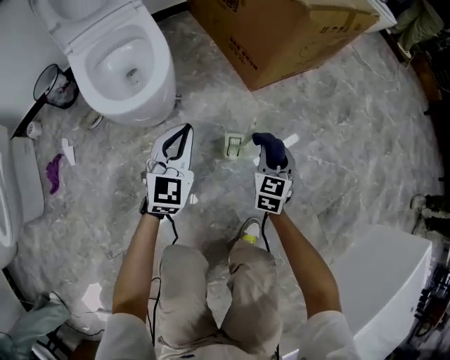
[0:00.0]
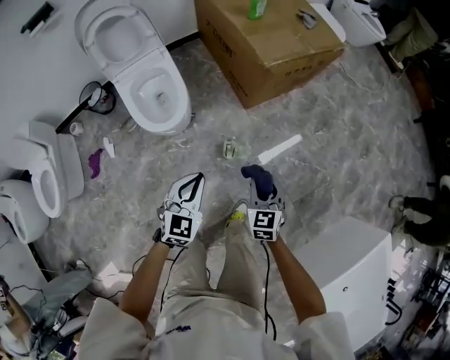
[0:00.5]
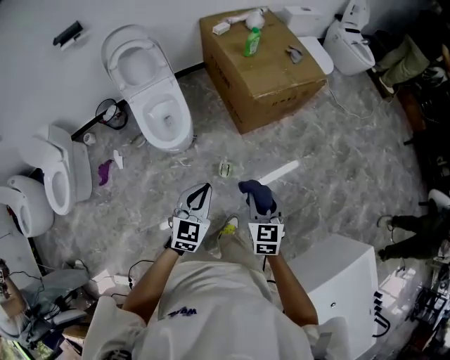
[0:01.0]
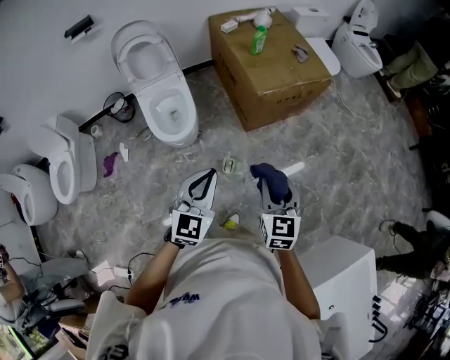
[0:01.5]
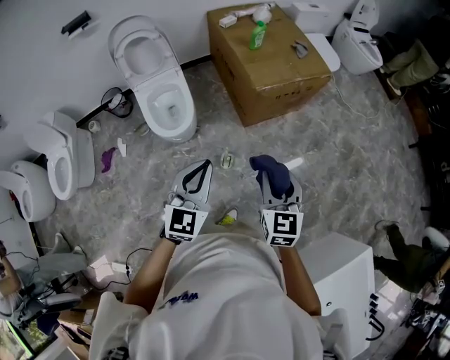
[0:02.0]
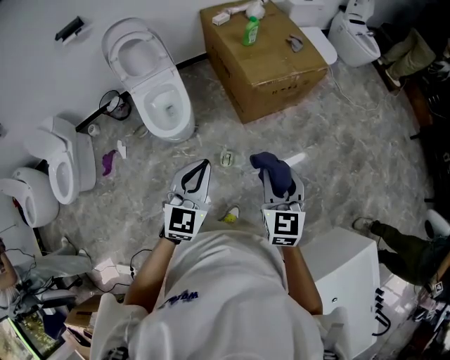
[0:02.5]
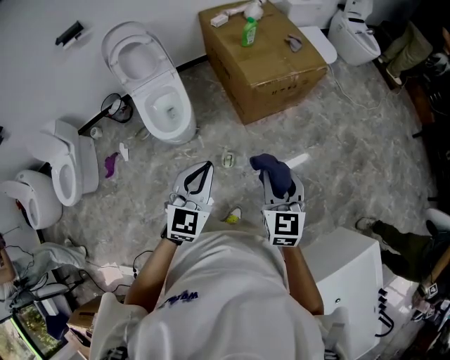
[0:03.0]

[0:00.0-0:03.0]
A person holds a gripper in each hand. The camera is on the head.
0:00.0 to 0:01.5: The two grippers go about 60 cm upward. The right gripper turns by approximately 20 degrees.
0:01.5 to 0:03.0: The grippers stay close to where they were, moving slightly.

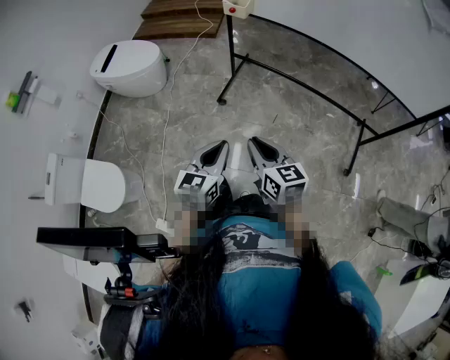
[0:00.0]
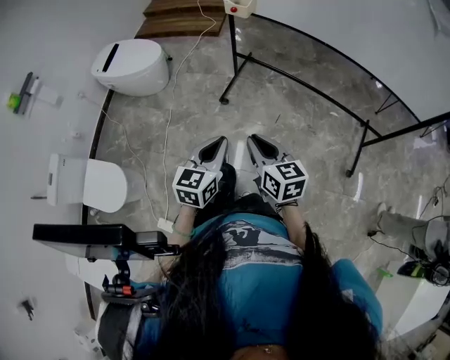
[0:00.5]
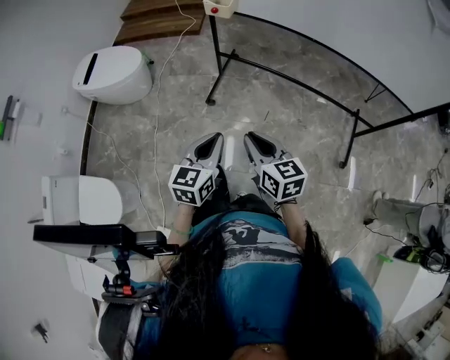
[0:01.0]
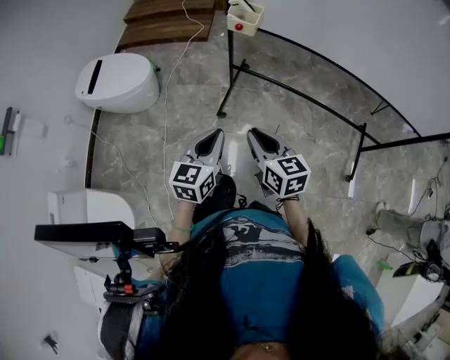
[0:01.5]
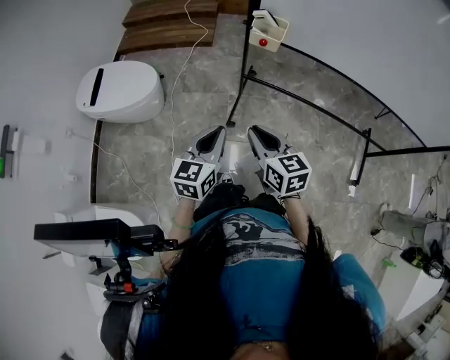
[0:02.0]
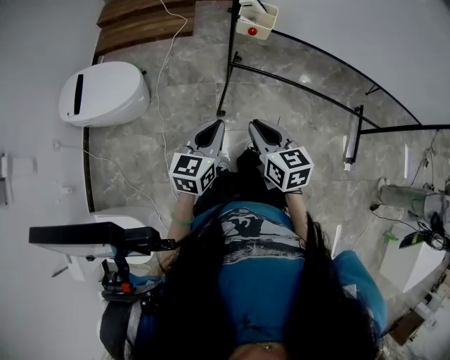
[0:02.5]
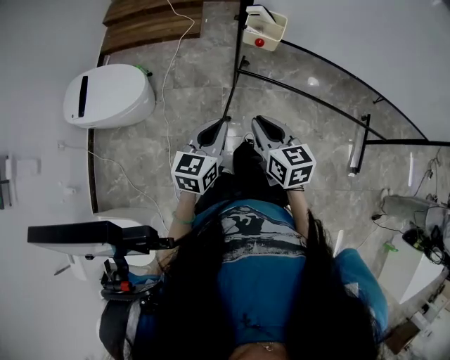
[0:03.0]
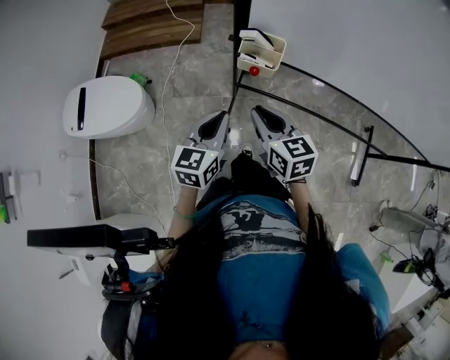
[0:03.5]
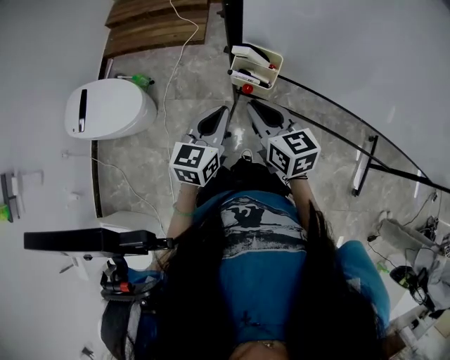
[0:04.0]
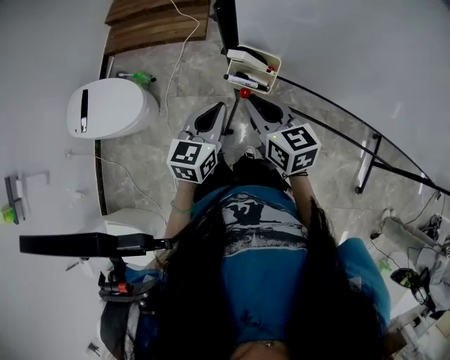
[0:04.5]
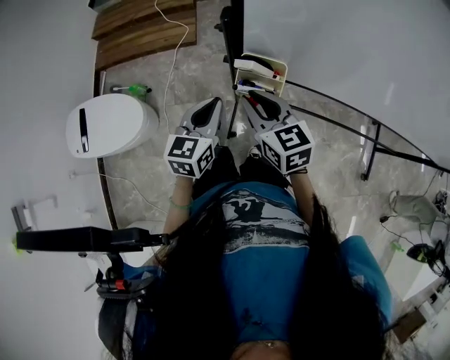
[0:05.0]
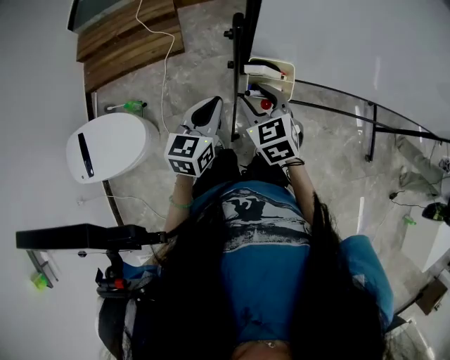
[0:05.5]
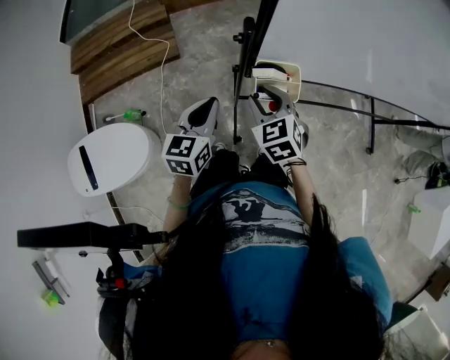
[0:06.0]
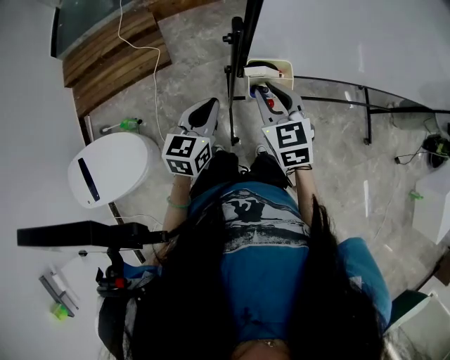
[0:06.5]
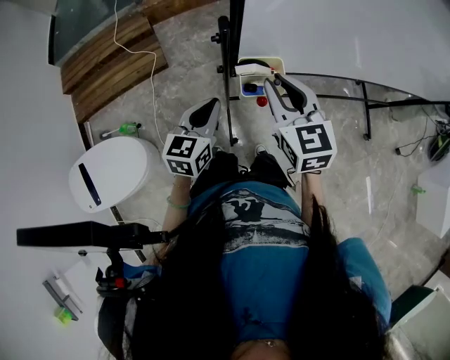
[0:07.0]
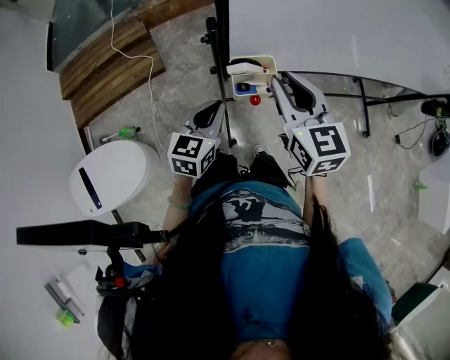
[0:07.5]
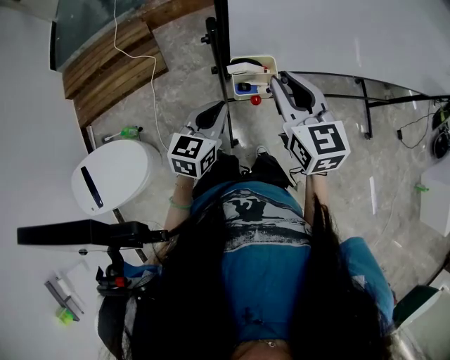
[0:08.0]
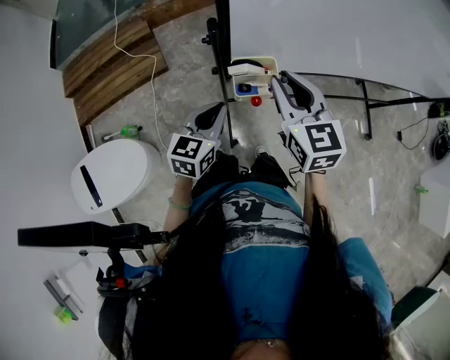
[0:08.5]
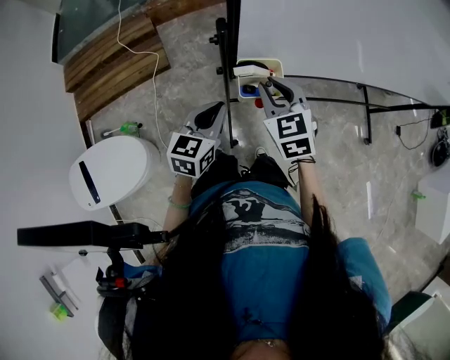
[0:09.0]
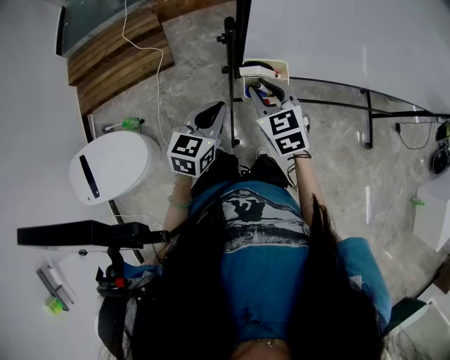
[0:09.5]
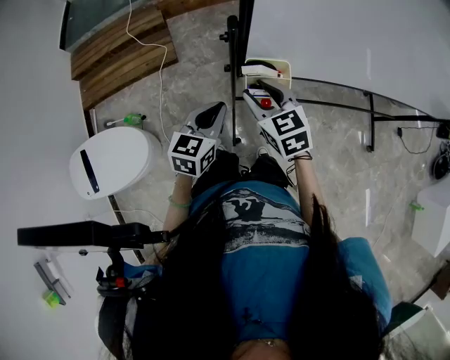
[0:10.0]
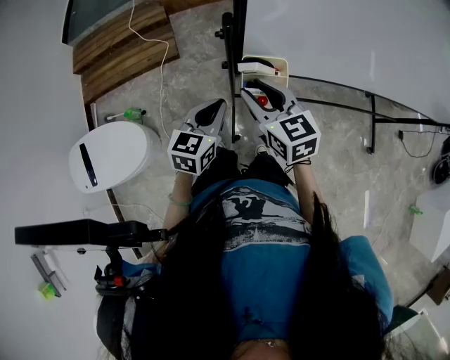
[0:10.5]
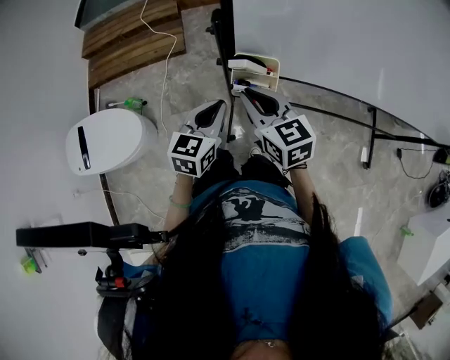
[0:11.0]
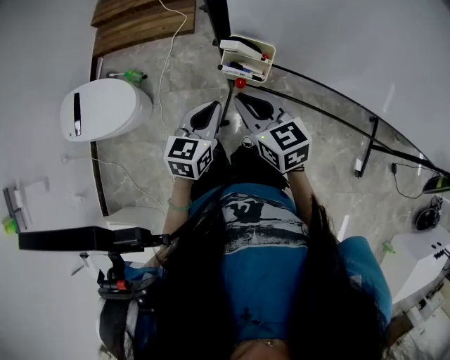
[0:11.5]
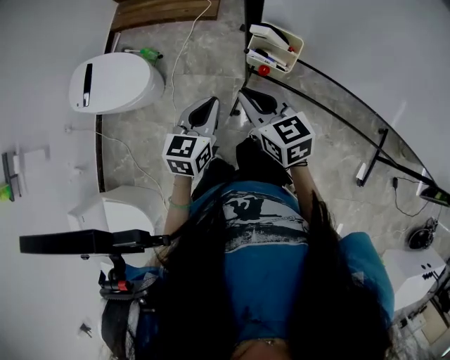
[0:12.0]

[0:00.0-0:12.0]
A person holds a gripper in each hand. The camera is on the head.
0:00.0 to 0:02.0: Both grippers move forward and to the left, about 40 cm.
0:02.0 to 0:04.0: The two grippers go approximately 30 cm forward.
0:04.0 to 0:06.0: The left gripper moves about 15 cm; the right gripper ends up approximately 10 cm from where it was, swivels roughly 40 degrees, and opens.
0:06.0 to 0:08.0: The right gripper goes about 15 cm upward and to the right, and turns by approximately 30 degrees; the left gripper shifts roughly 5 cm to the right.
0:08.0 to 0:10.0: The right gripper shifts approximately 15 cm downward and to the left, and turns by roughly 20 degrees.
0:10.0 to 0:12.0: The left gripper moves roughly 15 cm, and changes its angle by some 30 degrees. Meanwhile the right gripper shifts by about 15 cm, swivels approximately 30 degrees, and closes up.

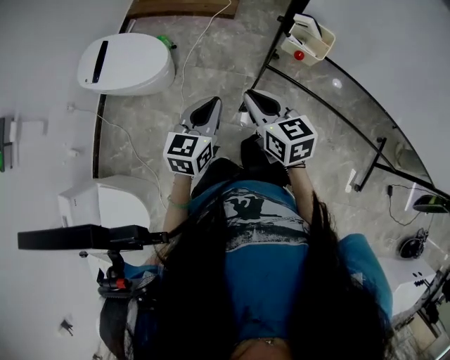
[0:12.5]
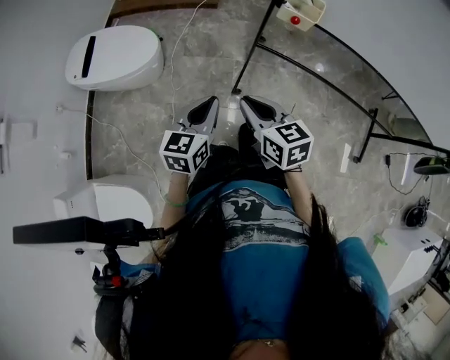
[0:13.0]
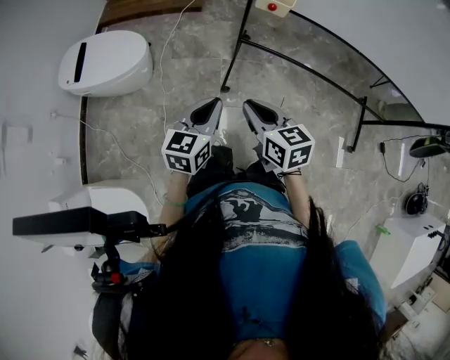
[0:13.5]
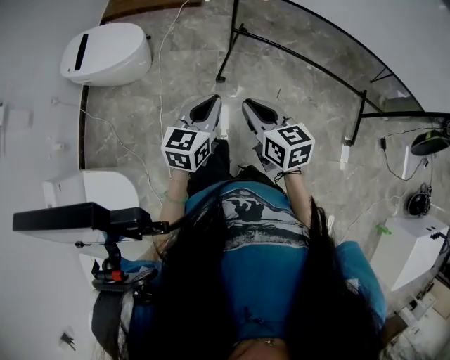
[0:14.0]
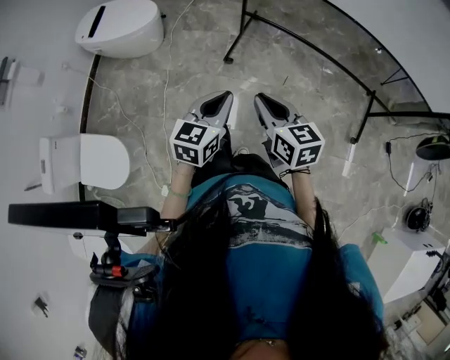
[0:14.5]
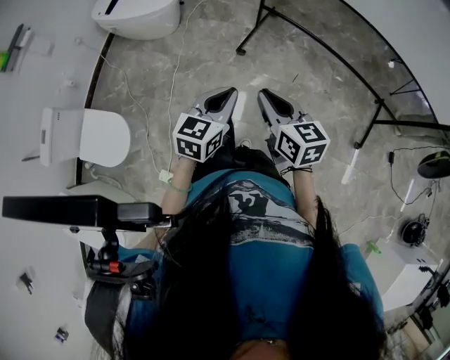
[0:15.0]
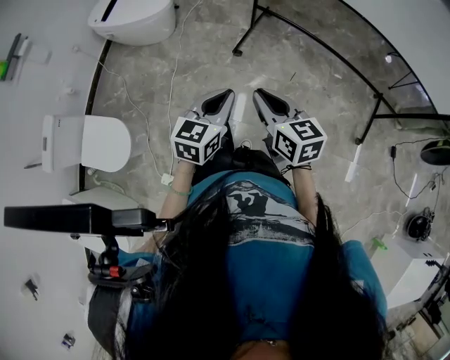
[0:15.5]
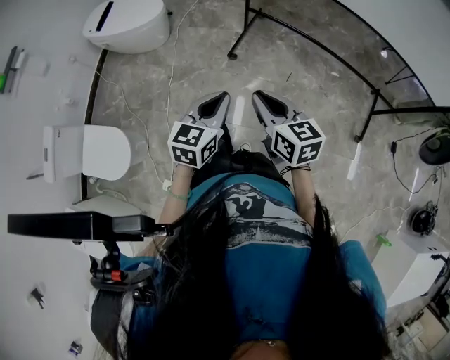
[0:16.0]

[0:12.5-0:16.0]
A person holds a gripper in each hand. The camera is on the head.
0:12.5 to 0:14.5: The pair of grippers is taken backward, some 40 cm.
0:14.5 to 0:16.0: The grippers both shift backward by about 5 cm.

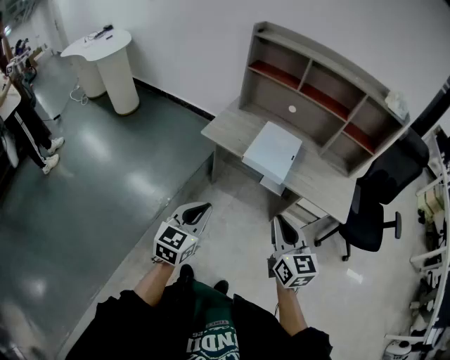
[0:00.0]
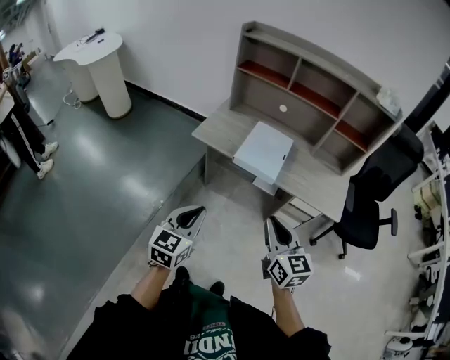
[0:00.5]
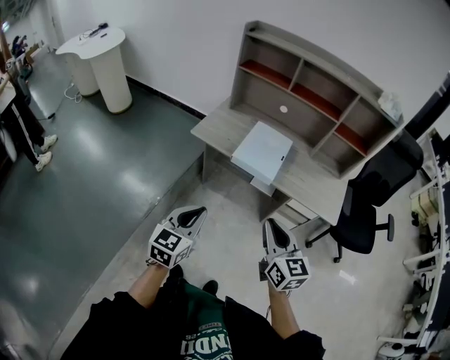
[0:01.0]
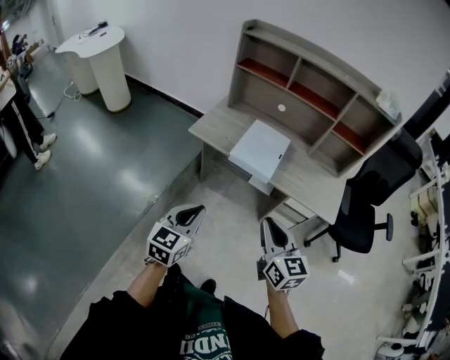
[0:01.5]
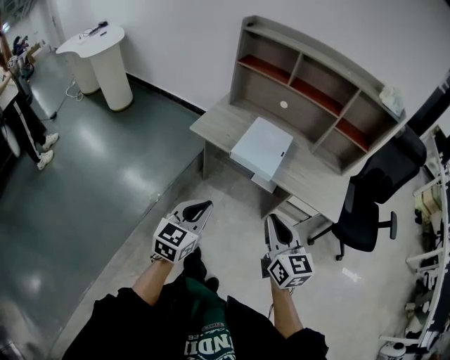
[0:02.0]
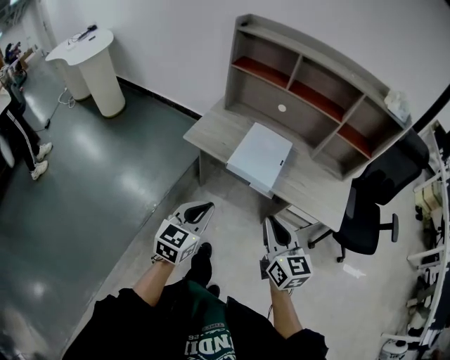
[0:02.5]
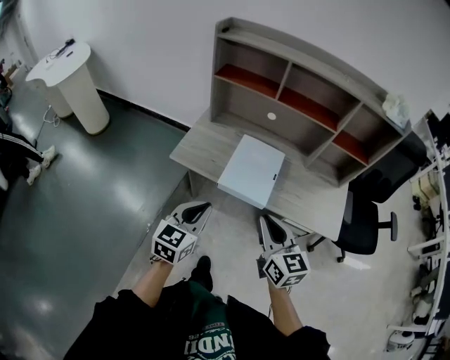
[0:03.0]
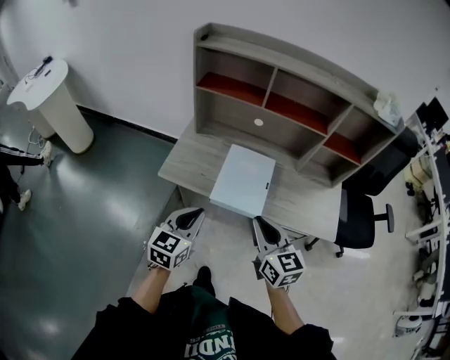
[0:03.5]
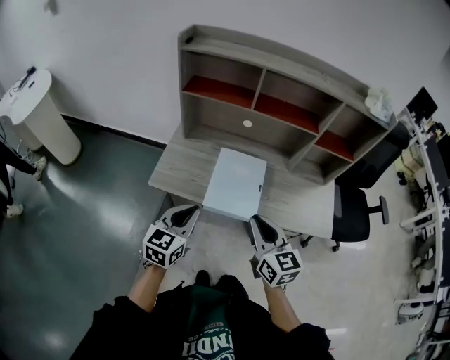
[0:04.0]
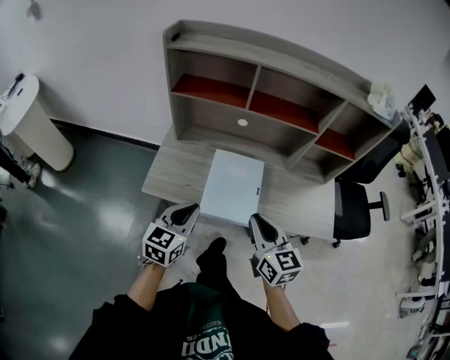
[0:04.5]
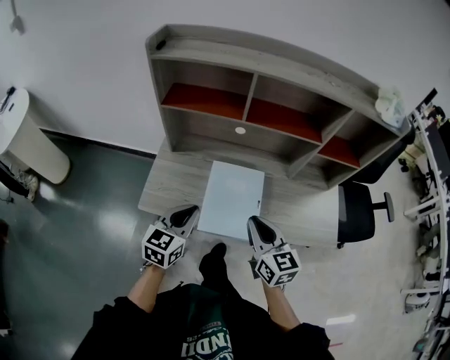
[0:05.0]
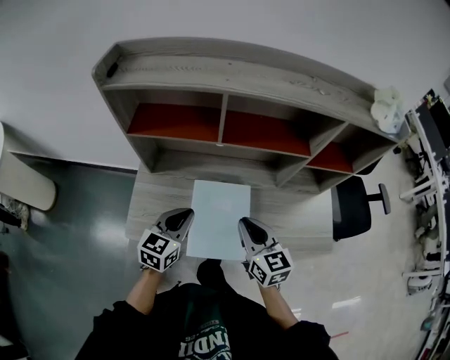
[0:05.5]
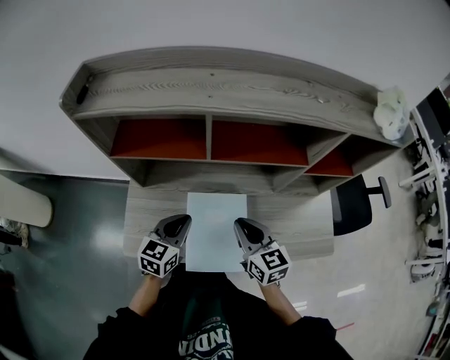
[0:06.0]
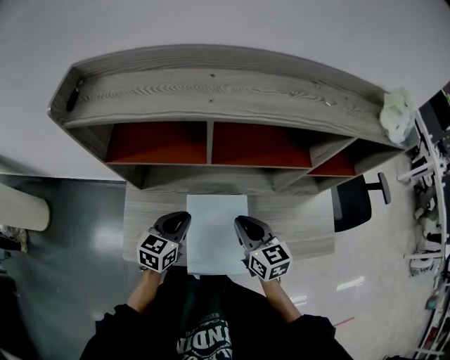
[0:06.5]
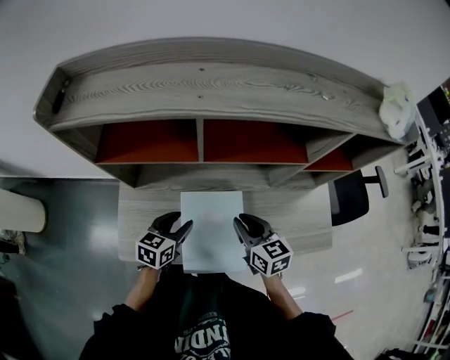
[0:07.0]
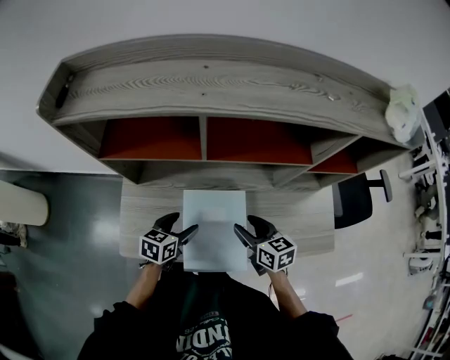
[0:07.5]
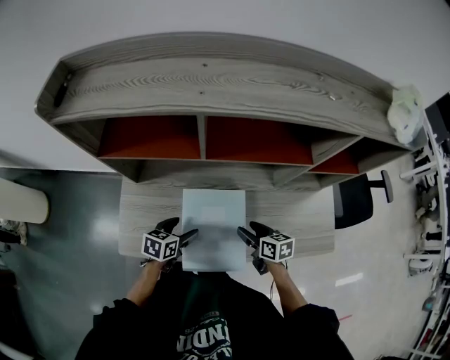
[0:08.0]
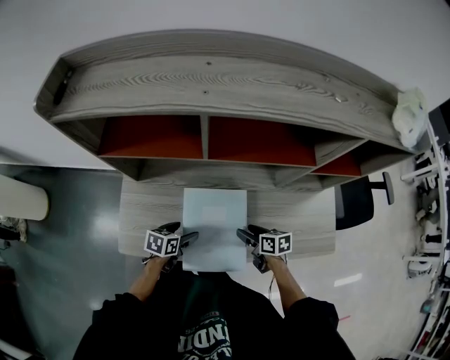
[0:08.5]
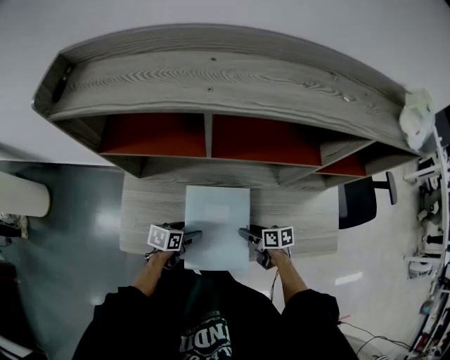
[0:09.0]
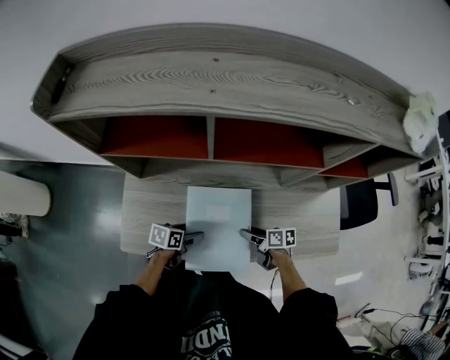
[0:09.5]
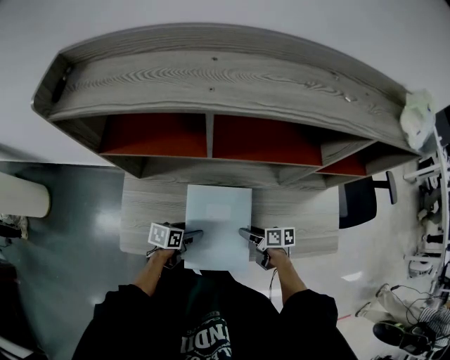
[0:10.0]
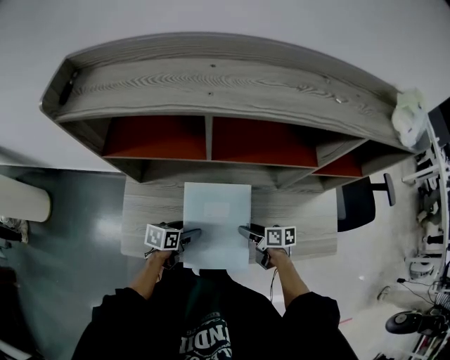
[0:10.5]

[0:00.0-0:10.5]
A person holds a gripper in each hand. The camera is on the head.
0:00.0 to 0:02.0: The left gripper travels to the right by some 5 cm.
0:02.0 to 0:04.0: The grippers both shift forward by roughly 25 cm.
0:04.0 to 0:06.5: The grippers both shift forward by some 30 cm.
0:06.5 to 0:08.5: The grippers both shift downward by about 20 cm. The right gripper rotates some 40 degrees, and opens, while the left gripper turns by roughly 30 degrees, and opens its fingers.
0:08.5 to 0:10.5: The grippers move only a little.
